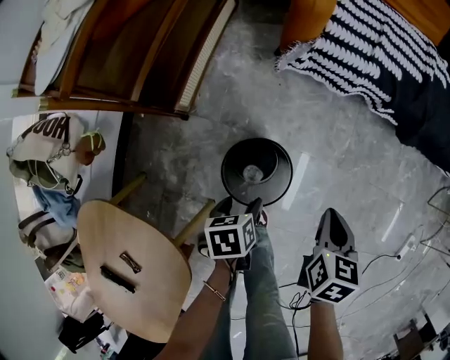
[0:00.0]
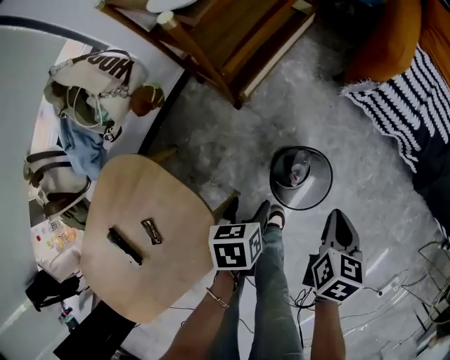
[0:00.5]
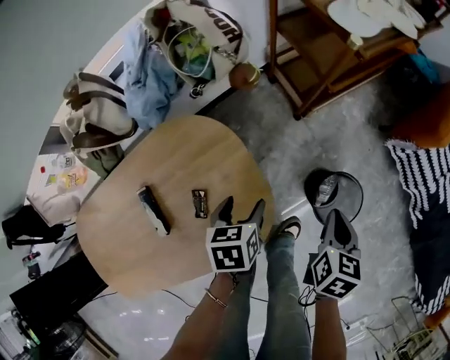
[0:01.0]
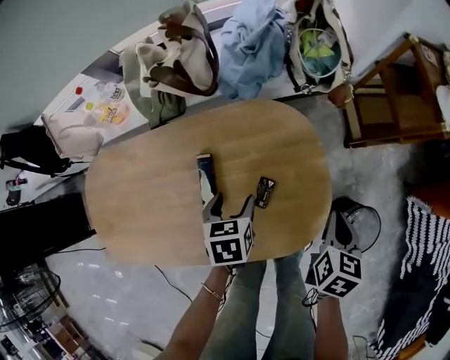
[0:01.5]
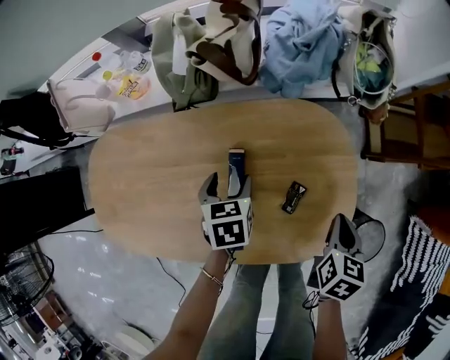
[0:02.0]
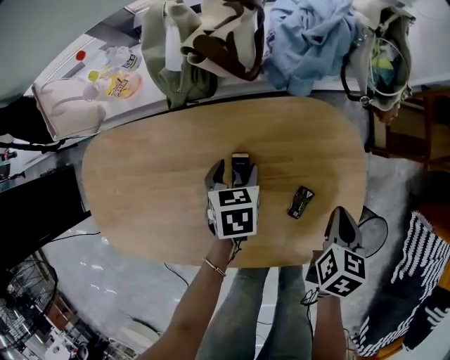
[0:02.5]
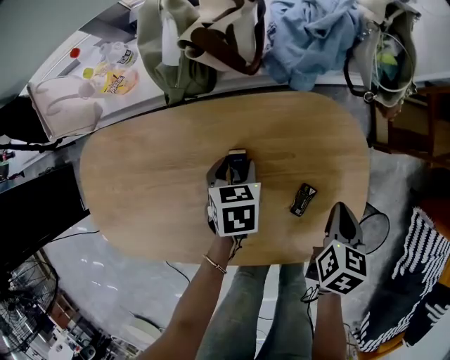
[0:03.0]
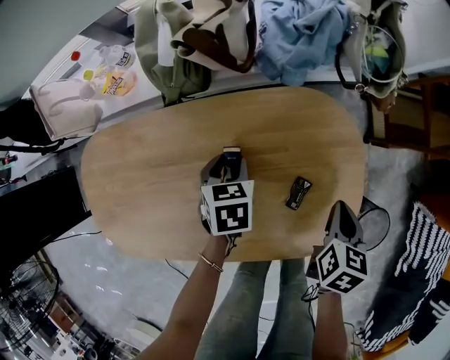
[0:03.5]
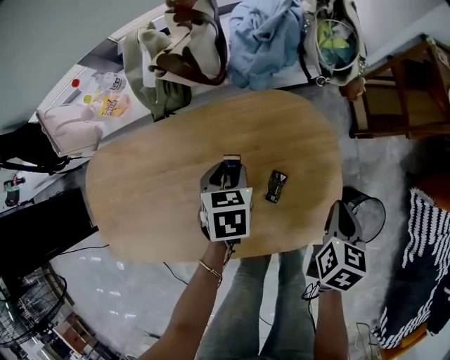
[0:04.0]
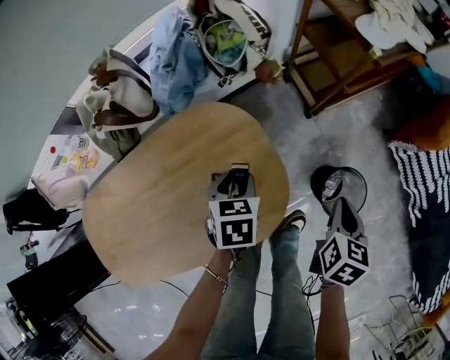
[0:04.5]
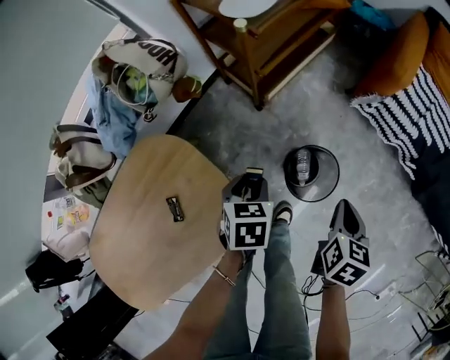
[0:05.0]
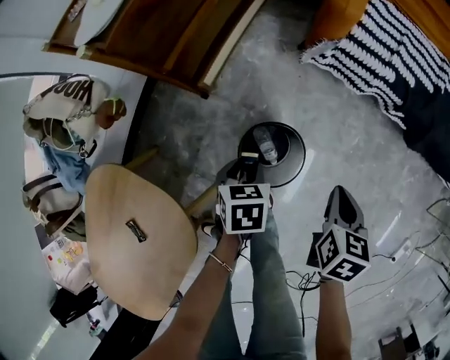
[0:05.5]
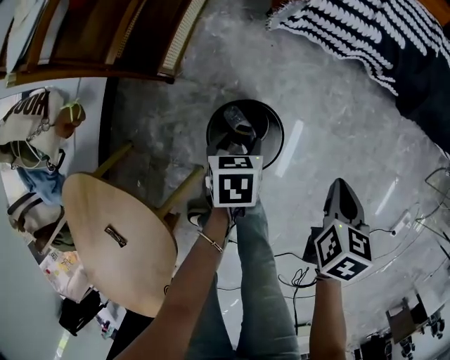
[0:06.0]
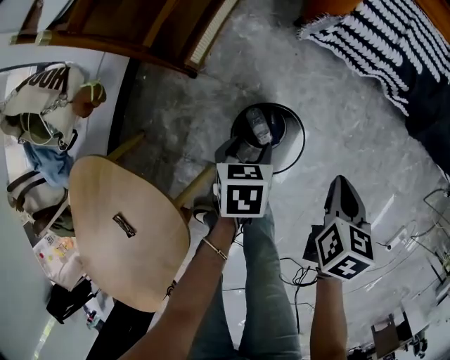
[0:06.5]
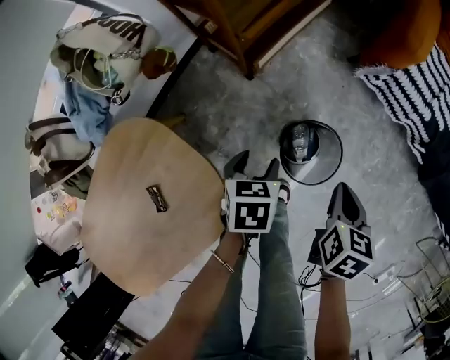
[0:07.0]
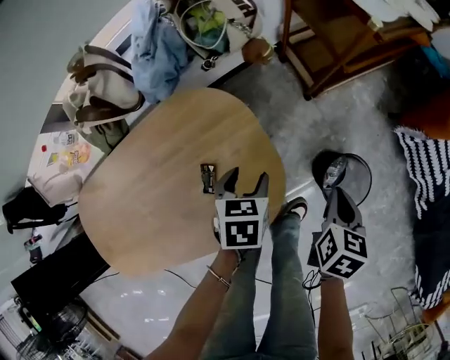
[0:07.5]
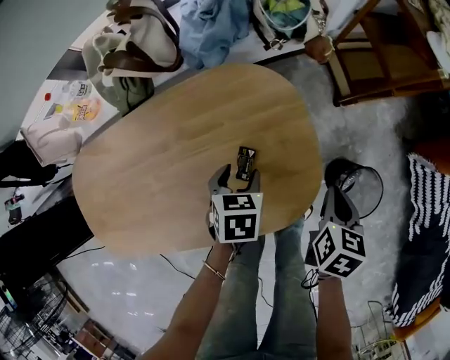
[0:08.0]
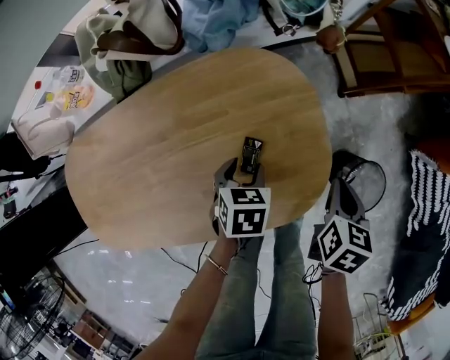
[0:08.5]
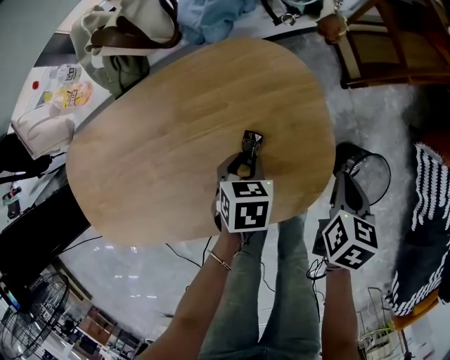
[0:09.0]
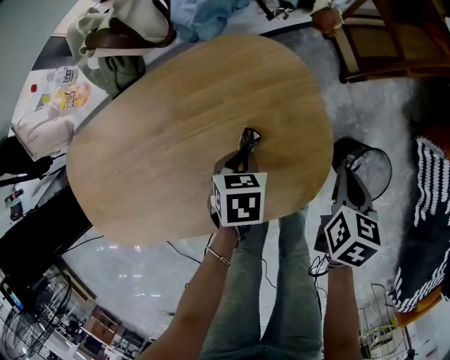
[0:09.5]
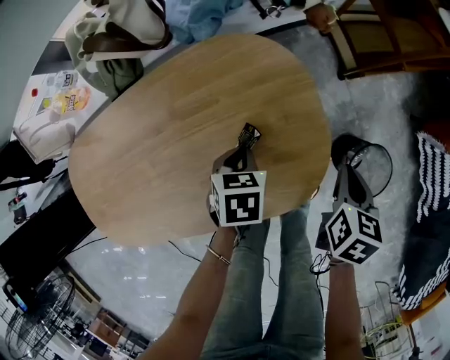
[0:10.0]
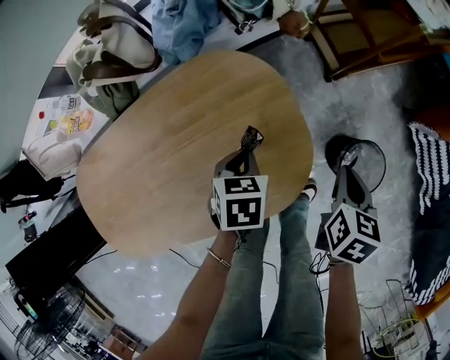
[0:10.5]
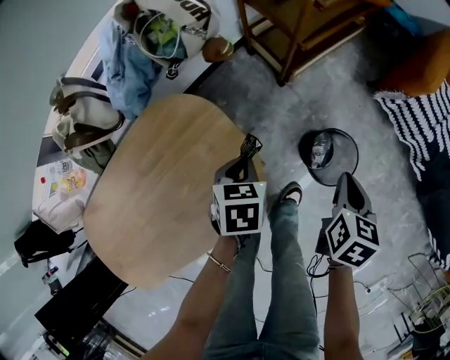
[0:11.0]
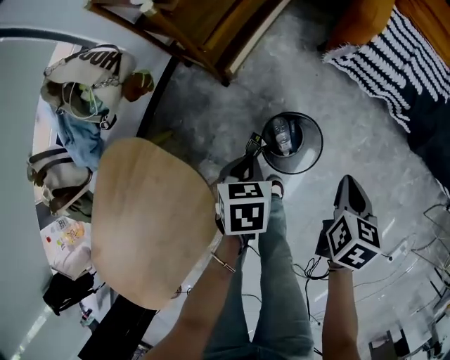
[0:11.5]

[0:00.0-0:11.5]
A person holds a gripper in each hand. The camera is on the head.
0:00.0 to 0:02.0: The pair of grippers is taken about 60 cm. The right gripper rolls counterclockwise, seen from behind, by some 50 degrees, while the left gripper turns by approximately 60 degrees.
0:02.0 to 0:04.0: The left gripper heads to the right, covering some 5 cm, and closes up.
0:04.0 to 0:06.0: The pair of grippers is taken approximately 60 cm. The right gripper changes its angle by roughly 60 degrees, while the left gripper swivels about 60 degrees.
0:06.0 to 0:07.5: The right gripper moves approximately 40 cm, and rotates approximately 40 degrees. Meanwhile the left gripper moves about 40 cm, and turns by about 40 degrees.
0:07.5 to 0:09.5: The left gripper is displaced to the left, downward and backward by approximately 15 cm, and closes its fingers; the right gripper is displaced to the left by roughly 10 cm.
0:09.5 to 0:11.5: The right gripper shifts by some 35 cm, and changes its angle by some 40 degrees. The left gripper shifts by roughly 40 cm, and turns by roughly 40 degrees.

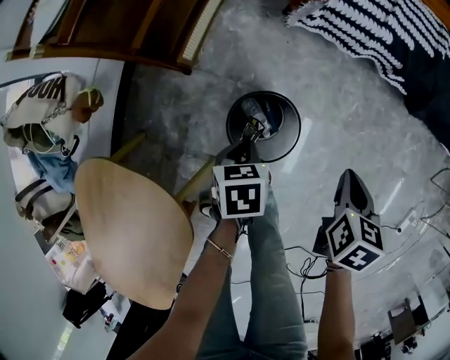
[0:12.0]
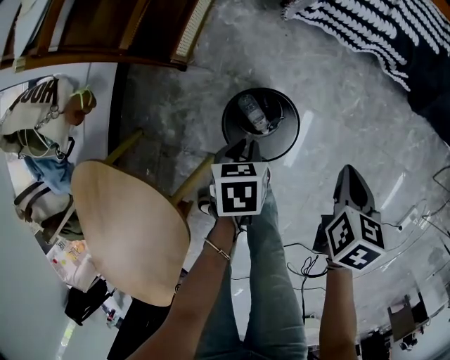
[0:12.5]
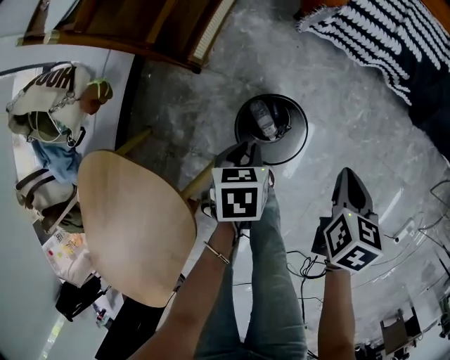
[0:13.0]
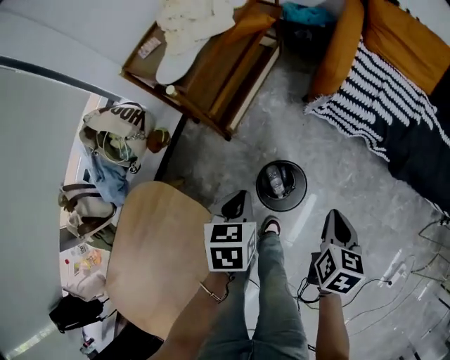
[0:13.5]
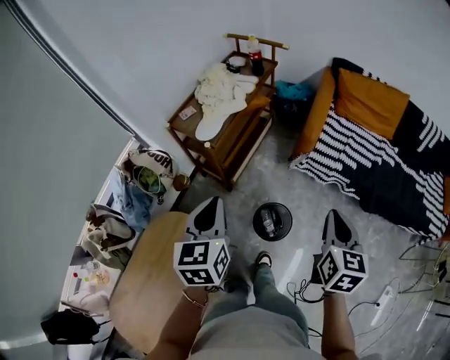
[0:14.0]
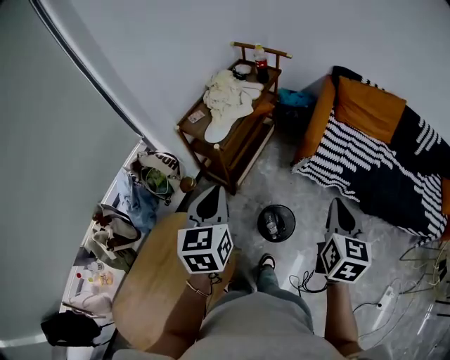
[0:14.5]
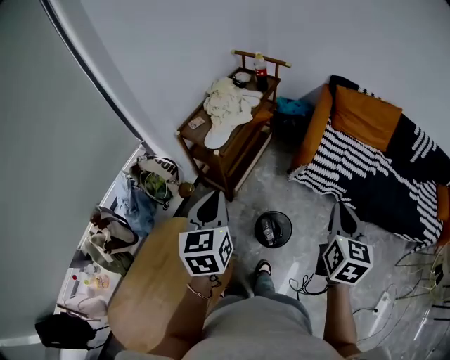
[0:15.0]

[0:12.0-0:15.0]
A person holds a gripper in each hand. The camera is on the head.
0:12.0 to 0:13.5: The right gripper travels upward and to the left by approximately 20 cm. The left gripper heads upward, covering some 25 cm.
0:13.5 to 0:15.0: Both grippers move upward, approximately 35 cm. The left gripper points its fingers about 30 degrees further upward. Meanwhile the right gripper rotates about 30 degrees.

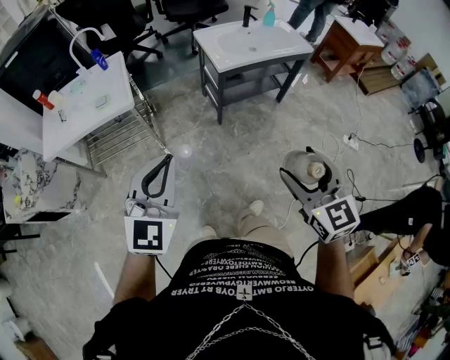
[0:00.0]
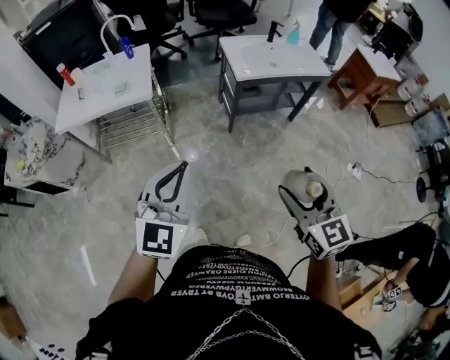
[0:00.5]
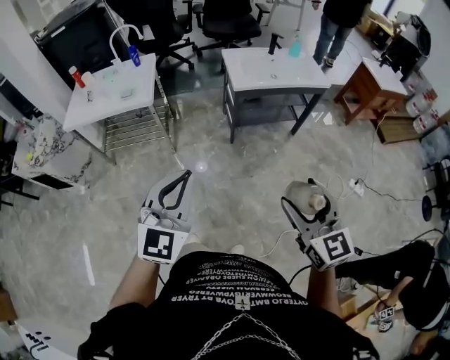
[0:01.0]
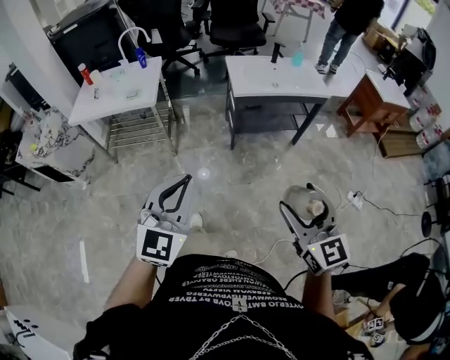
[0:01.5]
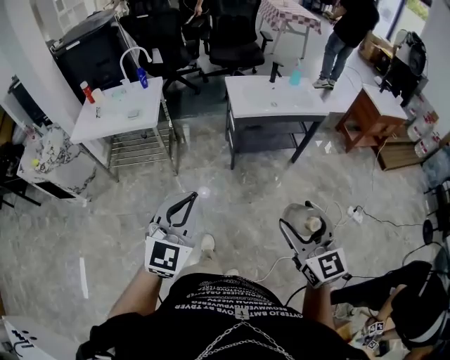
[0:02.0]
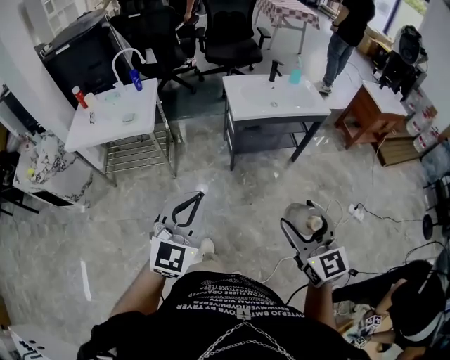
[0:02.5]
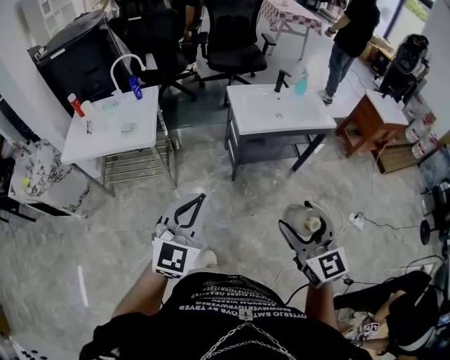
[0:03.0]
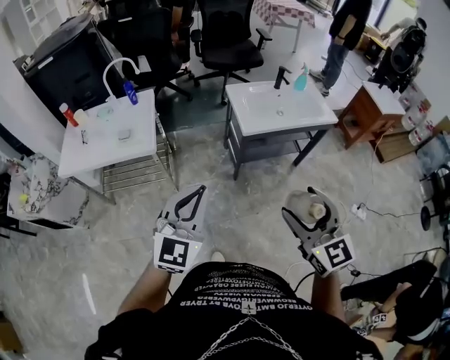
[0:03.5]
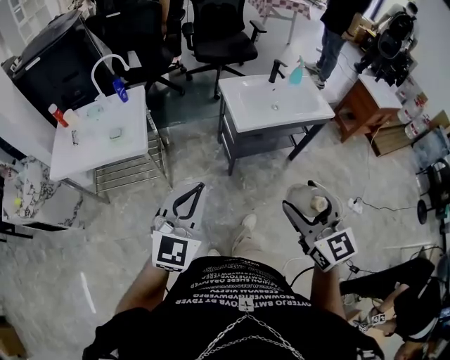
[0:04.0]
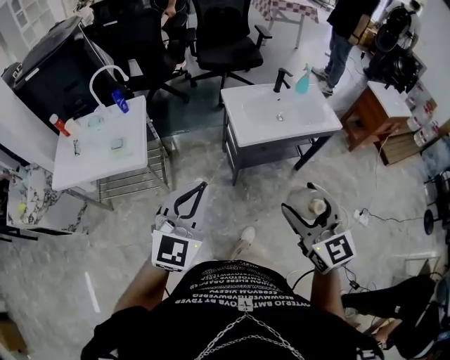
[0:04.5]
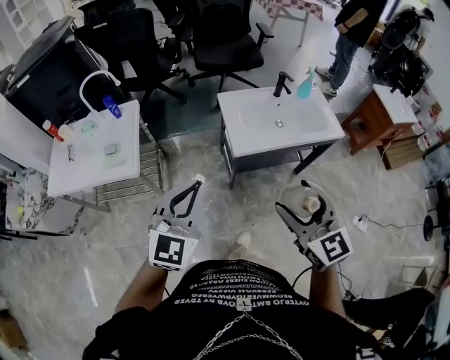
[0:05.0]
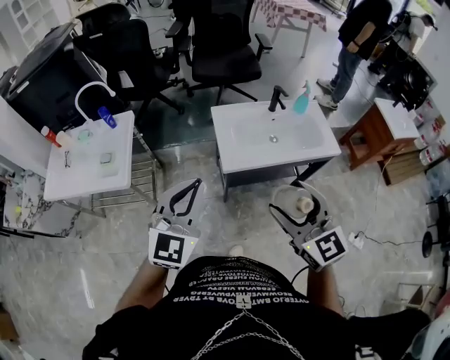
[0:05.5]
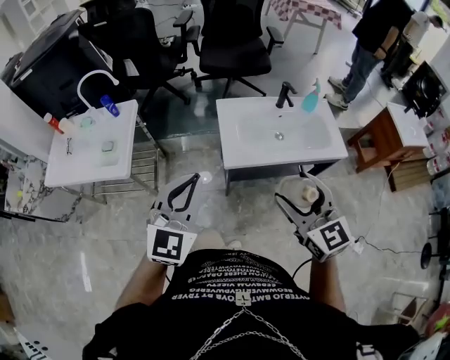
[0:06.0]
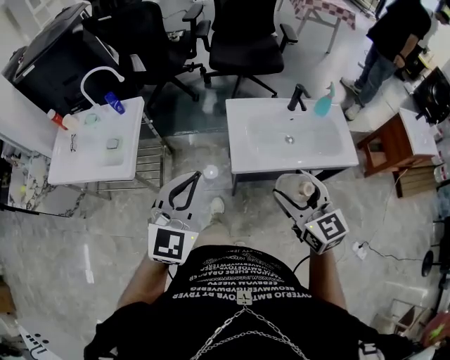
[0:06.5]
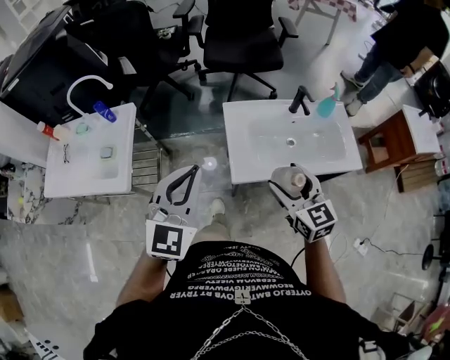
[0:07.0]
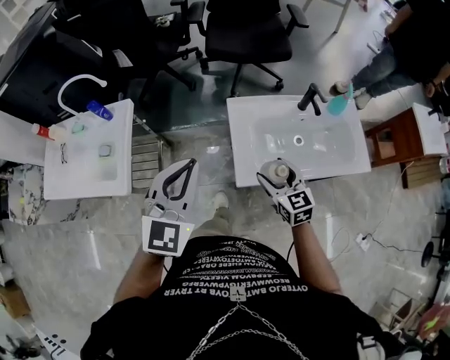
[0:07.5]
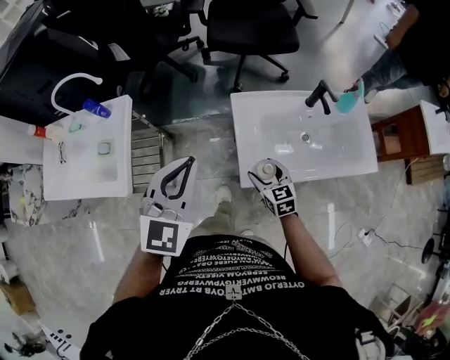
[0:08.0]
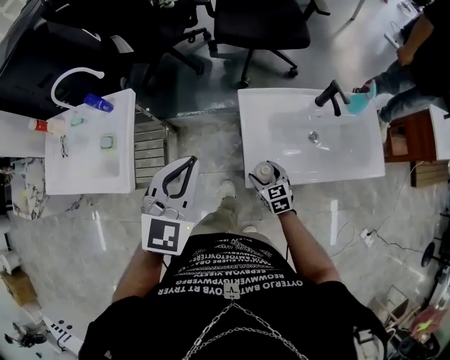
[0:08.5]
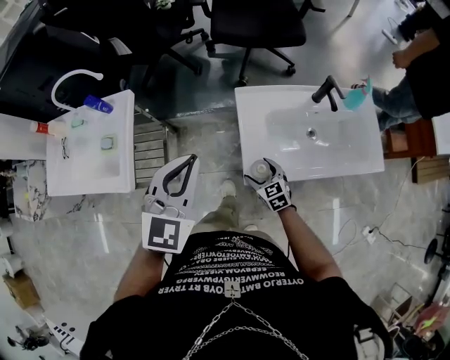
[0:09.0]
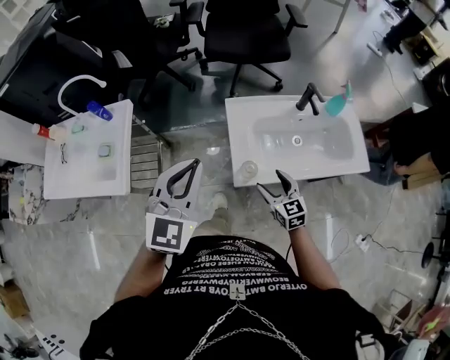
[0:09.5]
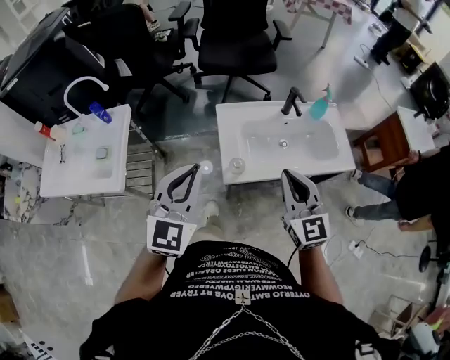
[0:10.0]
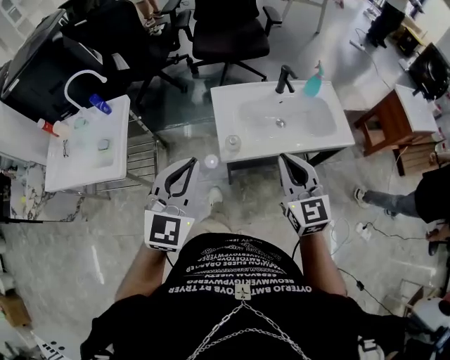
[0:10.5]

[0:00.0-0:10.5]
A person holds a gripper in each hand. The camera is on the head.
0:00.0 to 0:02.0: Both grippers travel together to the right and backward, about 15 cm.
0:02.0 to 0:04.0: The left gripper moves forward, some 25 cm, while the right gripper heads forward and to the left, covering roughly 30 cm.
0:04.0 to 0:06.5: Both grippers travel together forward and to the right, about 35 cm.
0:06.5 to 0:08.5: The right gripper moves downward and forward, some 40 cm, and turns by about 30 degrees, while the left gripper shifts approximately 25 cm forward.
0:08.5 to 0:10.5: The right gripper travels upward and backward by some 40 cm, tilts its fingers roughly 30 degrees upward, and closes its fingers; the left gripper goes about 20 cm backward.

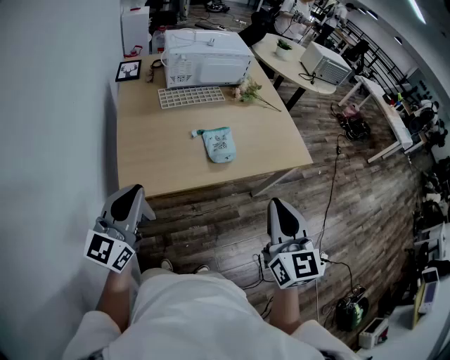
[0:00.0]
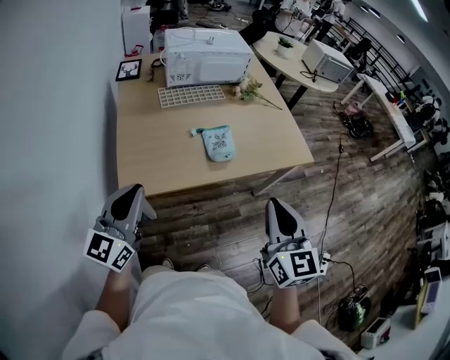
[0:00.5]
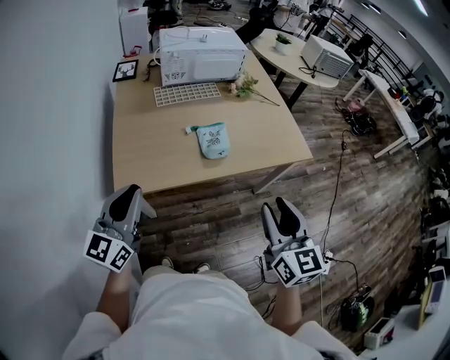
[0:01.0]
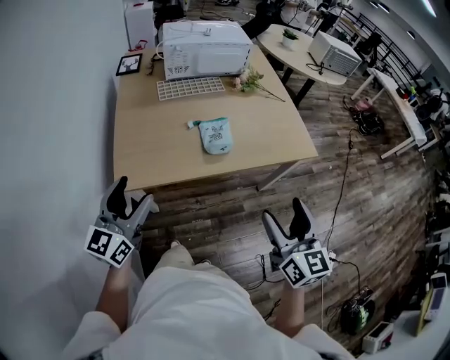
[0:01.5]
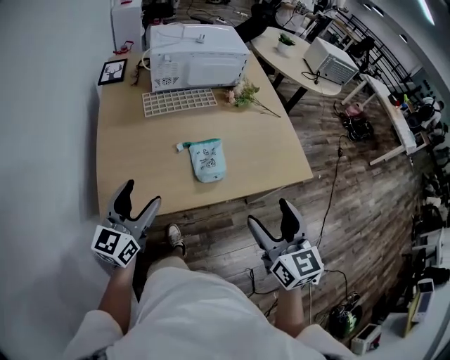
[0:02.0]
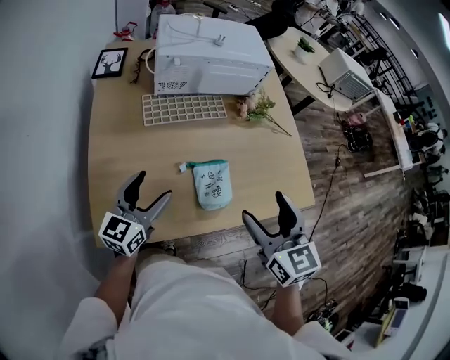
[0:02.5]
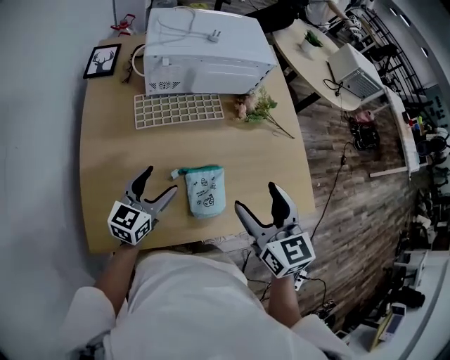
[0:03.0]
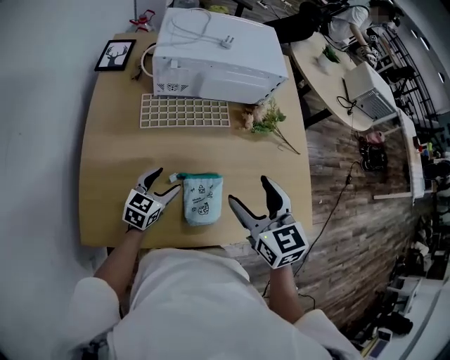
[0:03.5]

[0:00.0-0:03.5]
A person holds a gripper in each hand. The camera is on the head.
0:00.0 to 0:02.0: The two grippers go approximately 15 cm forward and downward. The left gripper opens its fingers. The right gripper opens.
0:02.0 to 0:03.5: The right gripper moves forward, some 30 cm. The left gripper shifts about 30 cm forward and downward, and changes its angle by approximately 30 degrees.
